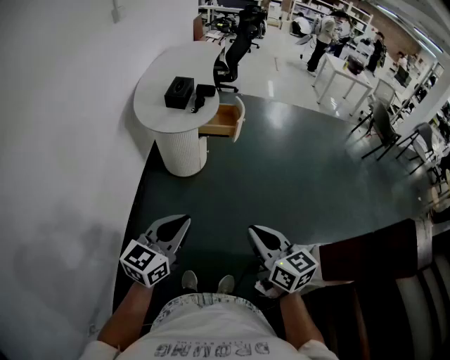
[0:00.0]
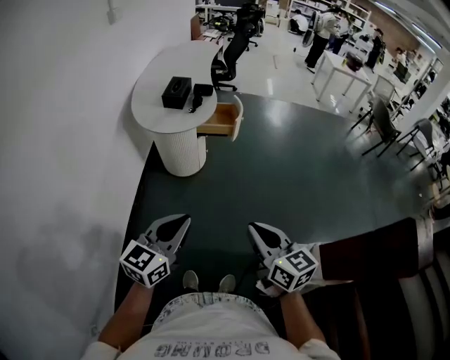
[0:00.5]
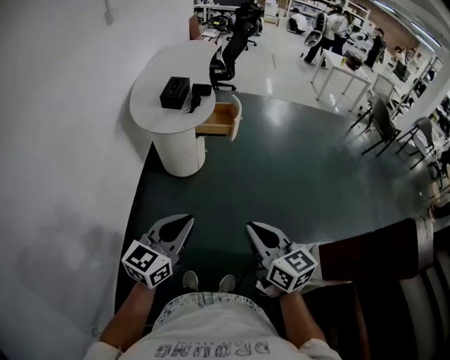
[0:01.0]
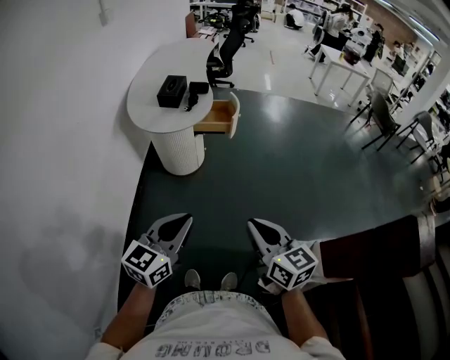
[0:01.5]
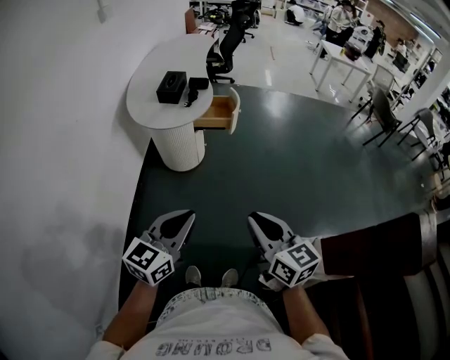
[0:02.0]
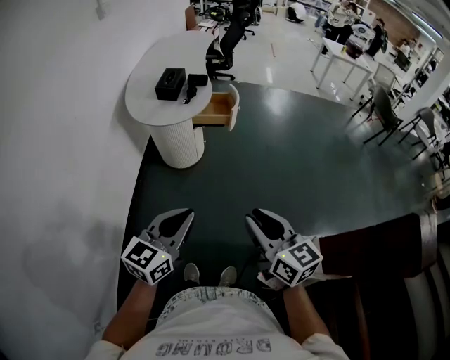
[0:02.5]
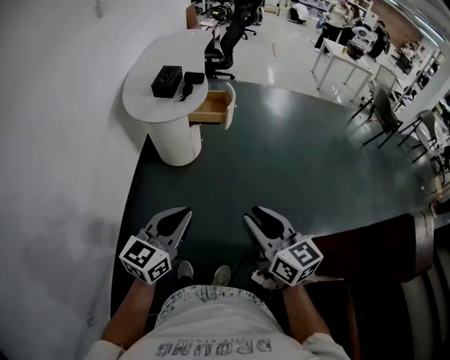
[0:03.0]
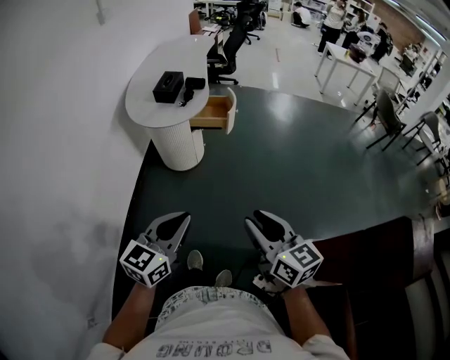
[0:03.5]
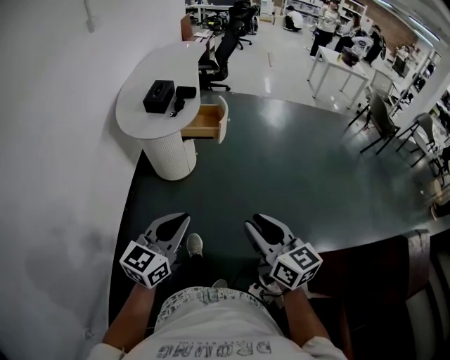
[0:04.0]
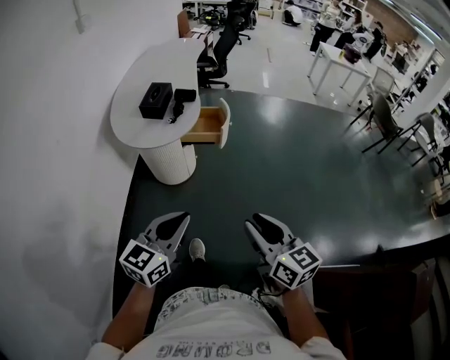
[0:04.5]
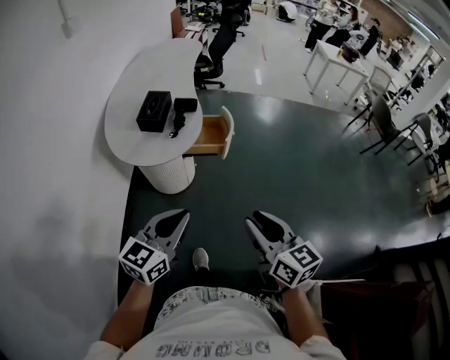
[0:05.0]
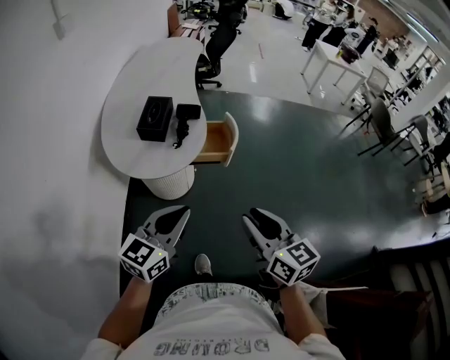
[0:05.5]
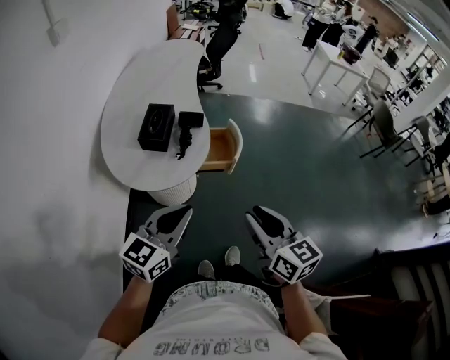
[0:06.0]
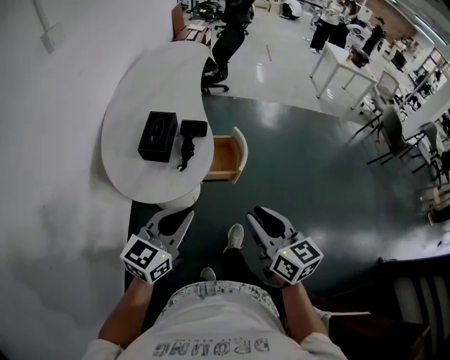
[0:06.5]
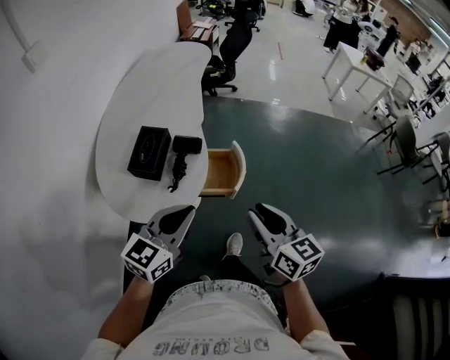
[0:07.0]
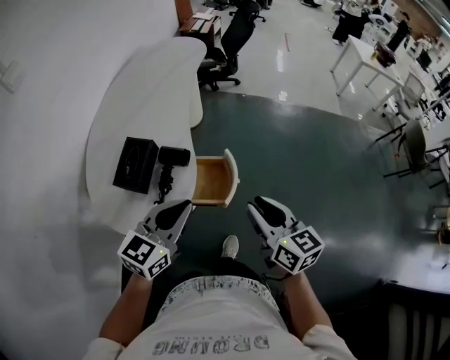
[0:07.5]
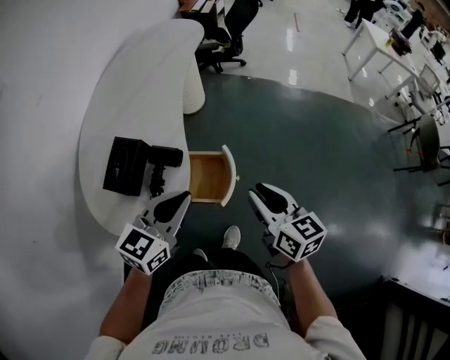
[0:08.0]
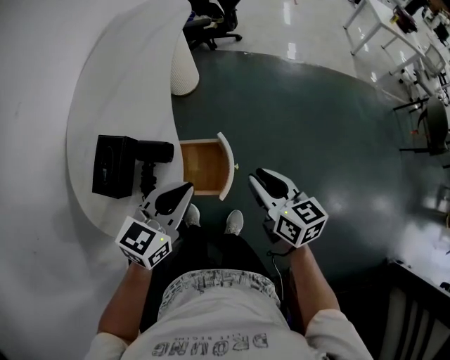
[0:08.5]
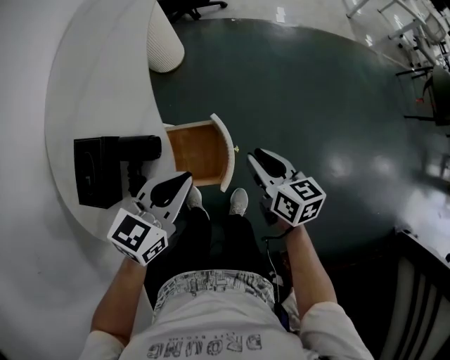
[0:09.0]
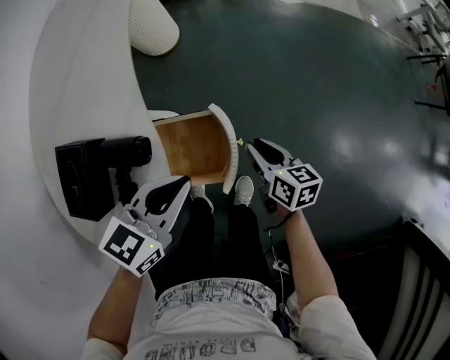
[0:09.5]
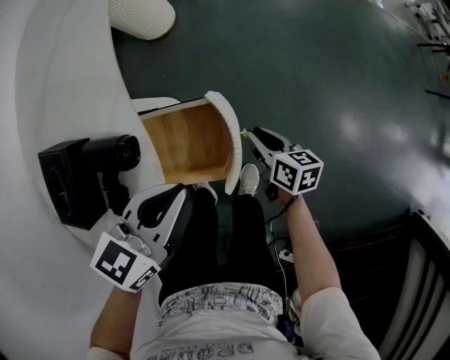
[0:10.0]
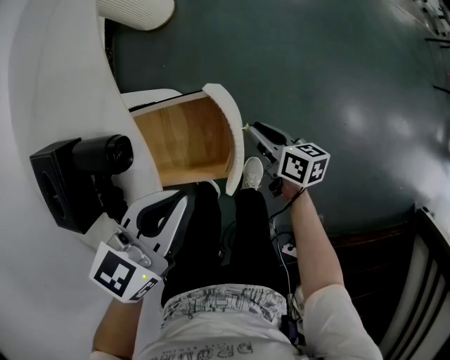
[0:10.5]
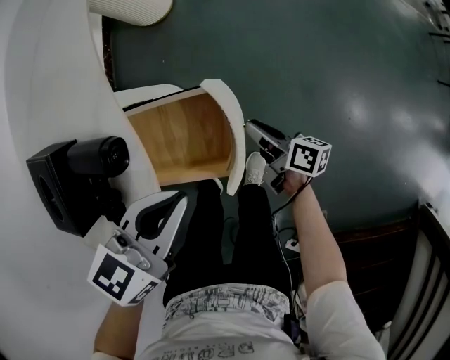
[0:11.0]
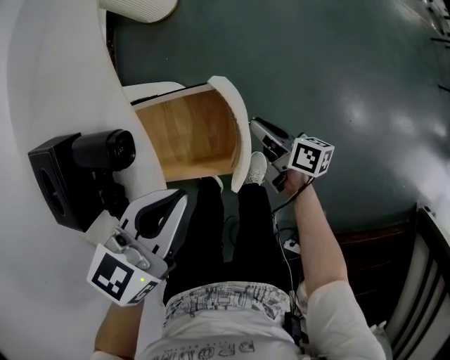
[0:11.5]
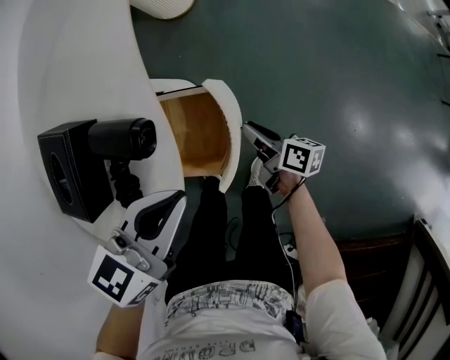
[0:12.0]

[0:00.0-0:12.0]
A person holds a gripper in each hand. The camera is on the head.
0:00.0 to 0:02.0: The grippers make only small movements.
0:02.0 to 0:04.0: The grippers both shift to the right by approximately 5 cm. The right gripper opens.
0:04.0 to 0:06.0: The grippers both shift forward and to the left by some 35 cm.
0:06.0 to 0:08.0: The grippers both shift forward by some 35 cm.
0:08.0 to 0:10.0: The left gripper heads downward, covering some 20 cm, and swivels some 20 degrees; the right gripper moves downward, roughly 35 cm, and turns by about 30 degrees.
0:10.0 to 0:12.0: The right gripper travels to the left by about 10 cm, and changes its angle by about 30 degrees.

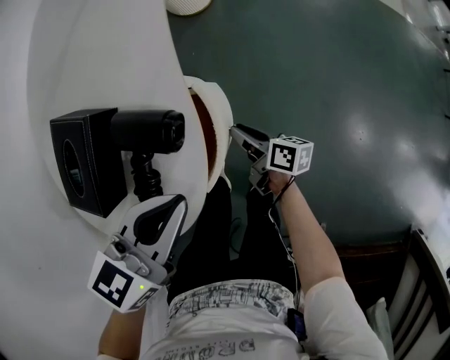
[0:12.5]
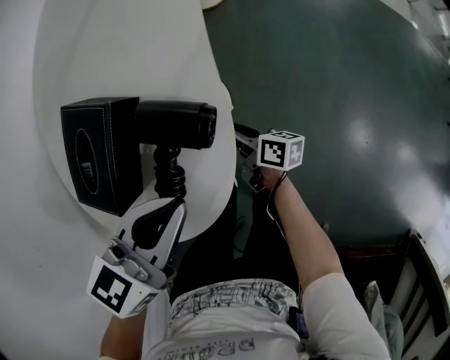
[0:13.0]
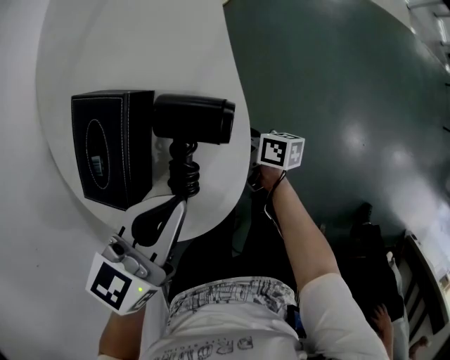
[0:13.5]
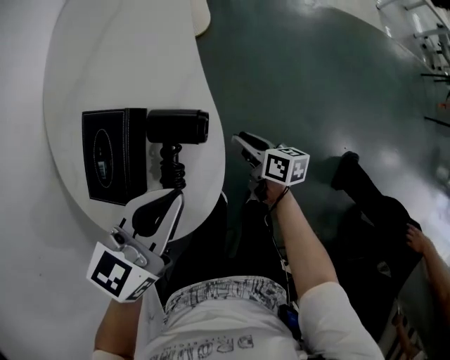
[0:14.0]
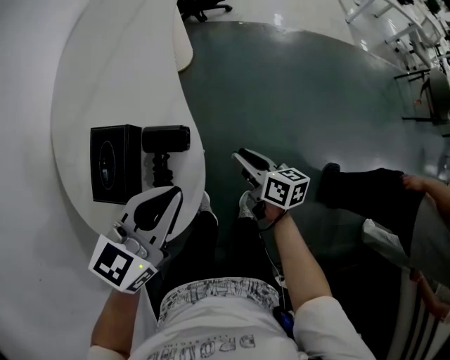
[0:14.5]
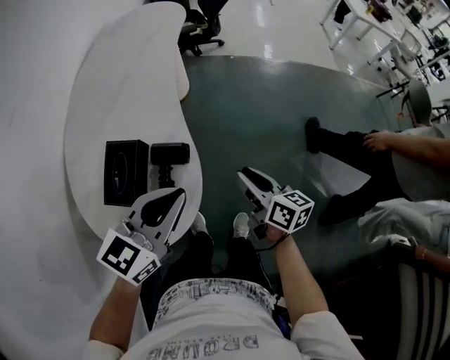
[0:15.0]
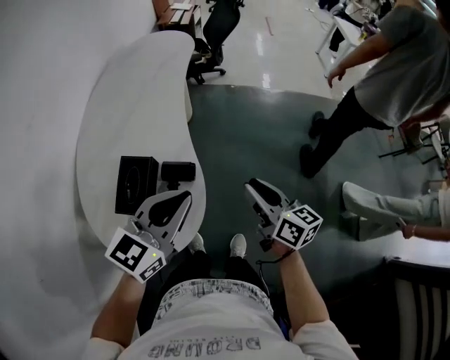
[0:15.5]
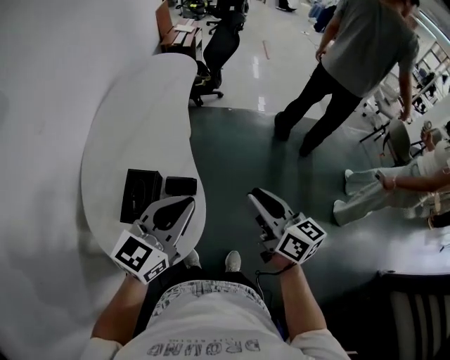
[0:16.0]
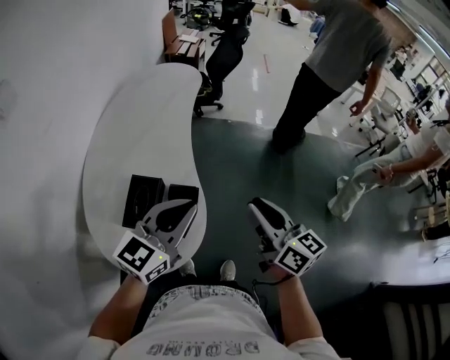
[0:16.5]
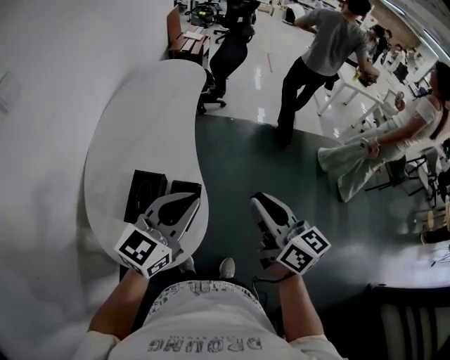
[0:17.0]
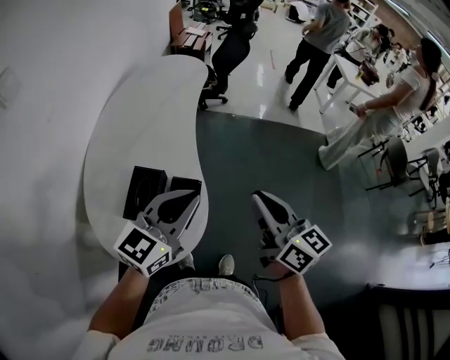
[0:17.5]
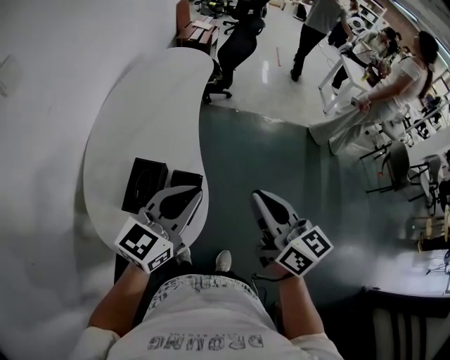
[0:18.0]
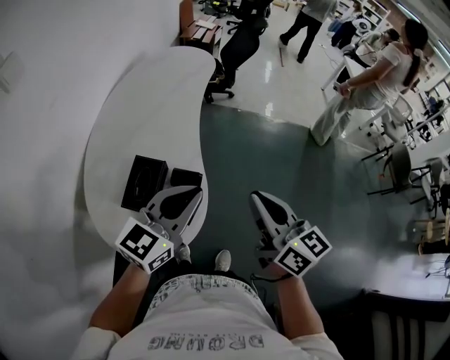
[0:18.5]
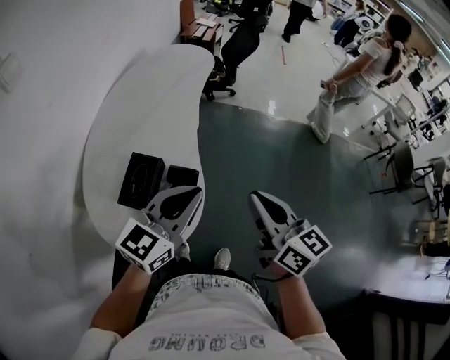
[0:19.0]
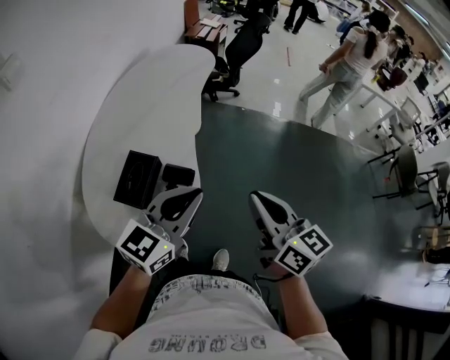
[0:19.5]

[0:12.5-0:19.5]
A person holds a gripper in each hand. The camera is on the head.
0:12.5 to 0:14.5: The right gripper heads upward, covering approximately 15 cm, and swivels roughly 20 degrees. Meanwhile the left gripper is displaced upward by roughly 10 cm.
0:14.5 to 0:16.0: The right gripper goes approximately 30 cm upward, and rotates roughly 30 degrees. The left gripper travels upward by some 15 cm.
0:16.0 to 0:17.5: The right gripper goes approximately 5 cm upward.
0:17.5 to 0:19.5: The grippers make only small movements.

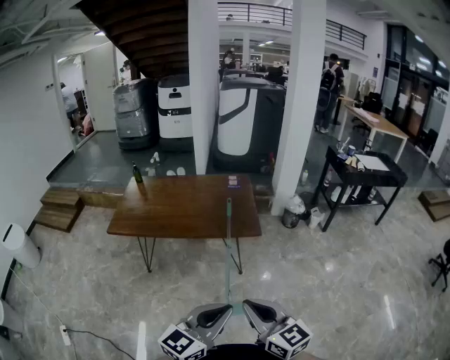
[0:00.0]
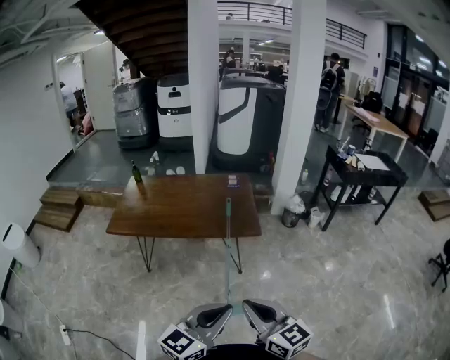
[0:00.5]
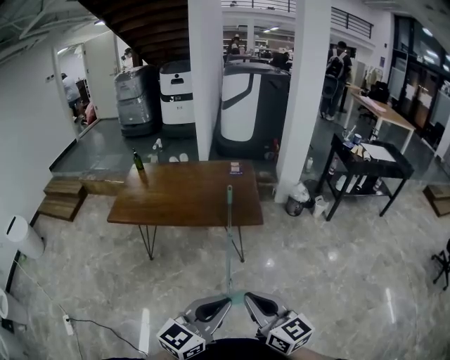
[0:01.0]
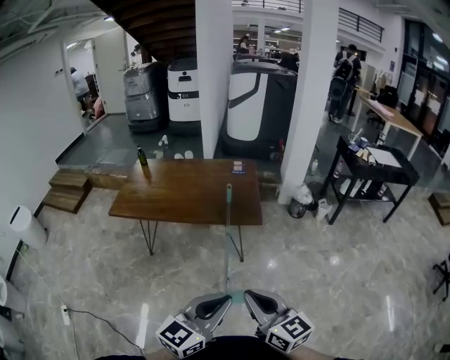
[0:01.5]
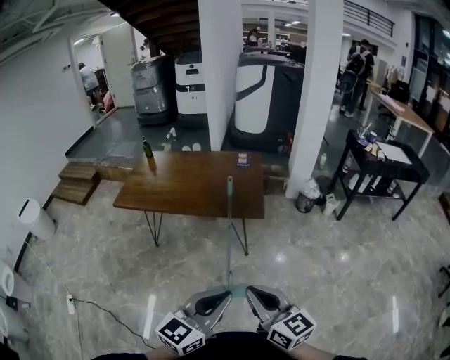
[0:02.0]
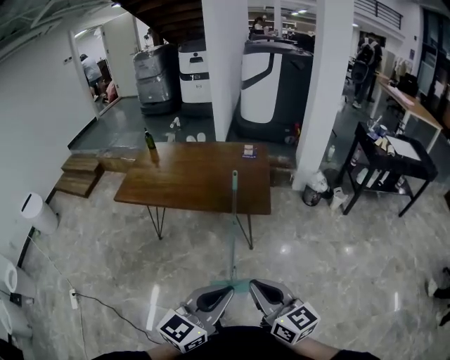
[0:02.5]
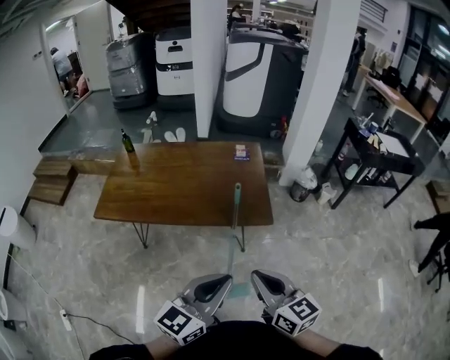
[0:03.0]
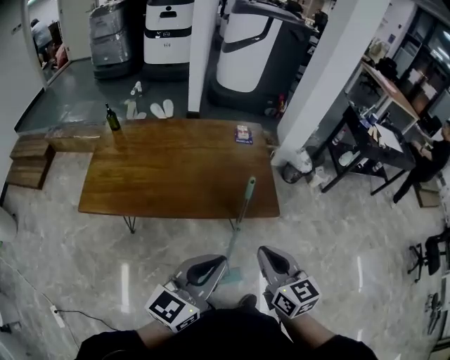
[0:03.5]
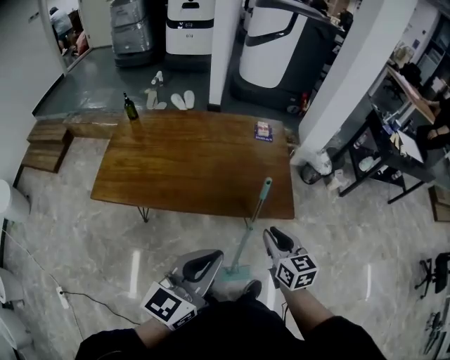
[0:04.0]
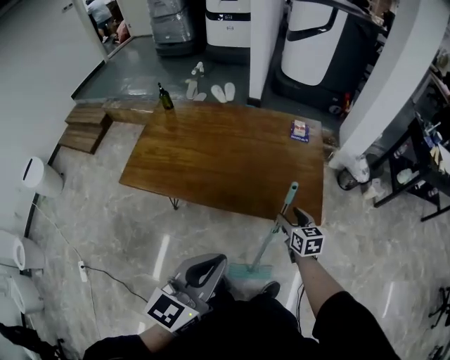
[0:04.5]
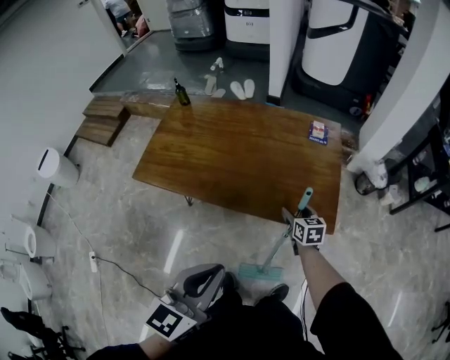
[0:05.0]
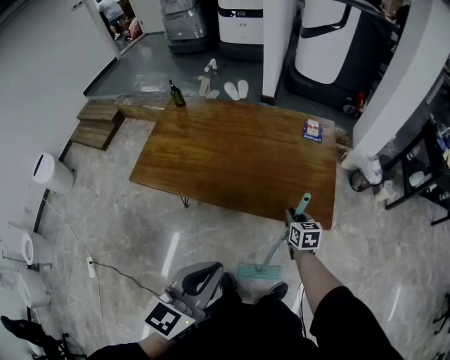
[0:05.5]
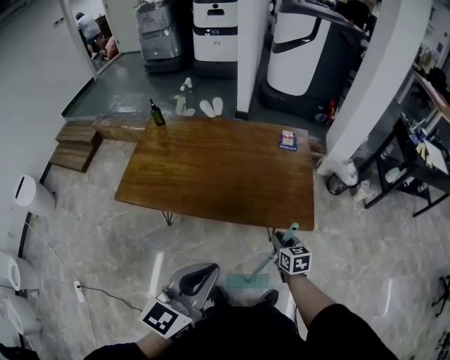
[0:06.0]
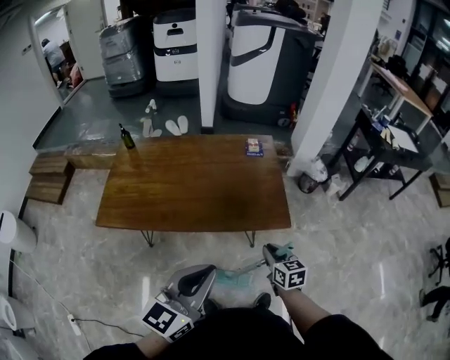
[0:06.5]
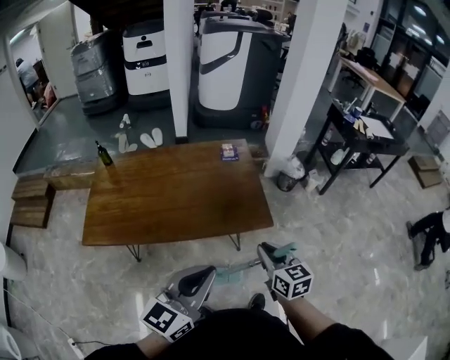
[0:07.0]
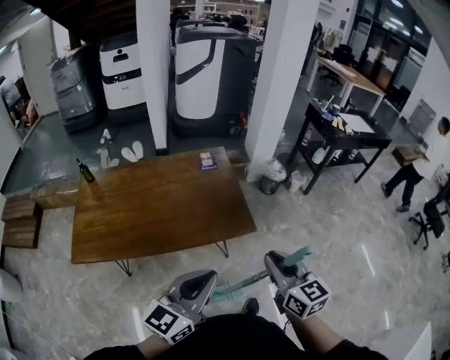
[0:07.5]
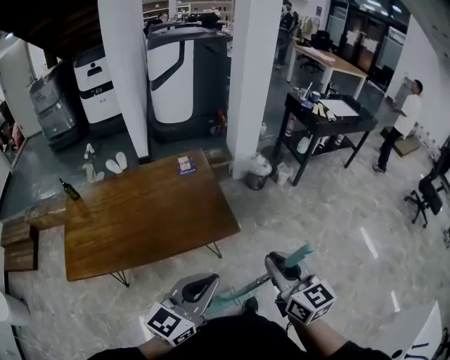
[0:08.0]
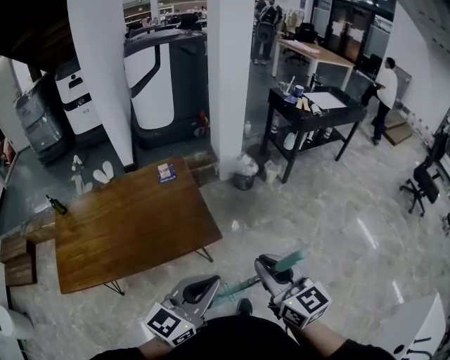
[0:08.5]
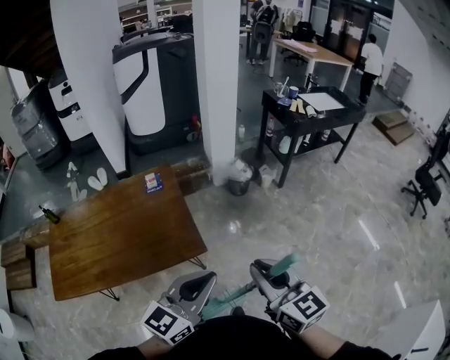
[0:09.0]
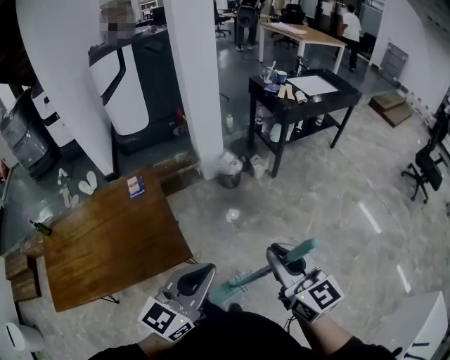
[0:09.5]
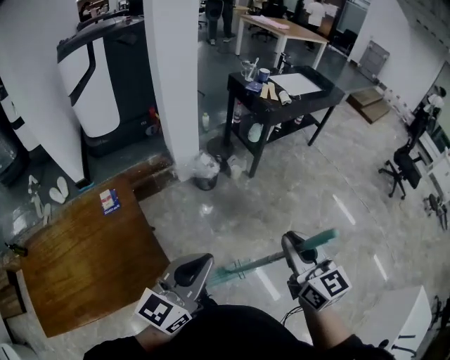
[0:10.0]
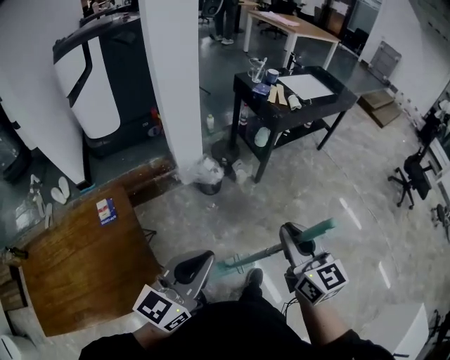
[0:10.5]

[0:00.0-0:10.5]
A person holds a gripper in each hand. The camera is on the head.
0:00.0 to 0:02.0: Both grippers move to the right, roughly 10 cm.
0:02.0 to 0:04.0: The left gripper goes some 35 cm forward and to the left. The right gripper heads forward, covering roughly 35 cm, and changes its angle by about 30 degrees.
0:04.0 to 0:06.5: The right gripper is displaced downward by some 10 cm, and opens, then closes again.
0:06.5 to 0:08.5: The left gripper travels to the right by approximately 20 cm, and turns by about 30 degrees. The right gripper is displaced upward and to the right by roughly 30 cm, and changes its angle by roughly 30 degrees.
0:08.5 to 0:10.5: The right gripper heads forward and to the right, covering about 40 cm. Meanwhile the left gripper is displaced forward by roughly 35 cm.
